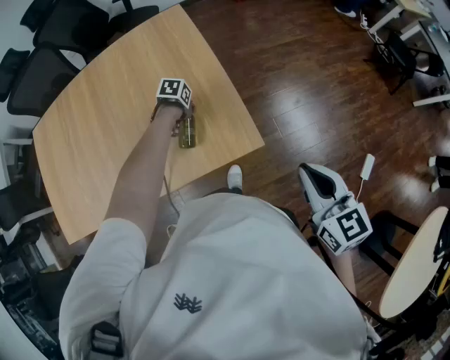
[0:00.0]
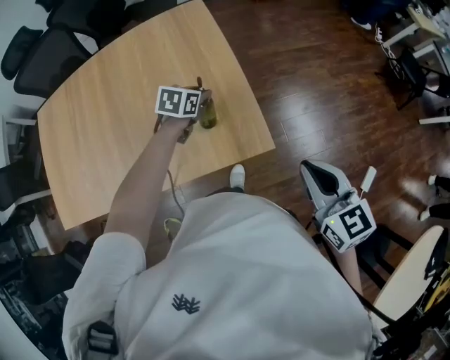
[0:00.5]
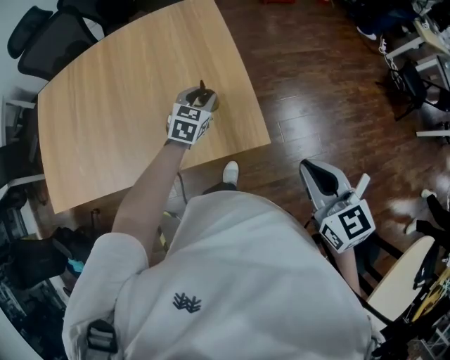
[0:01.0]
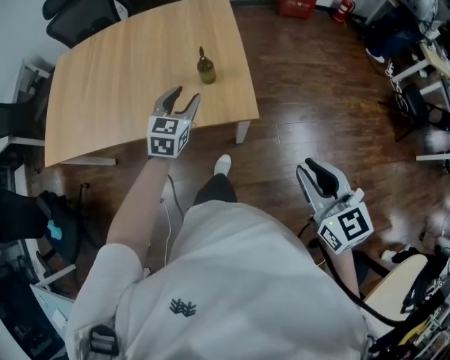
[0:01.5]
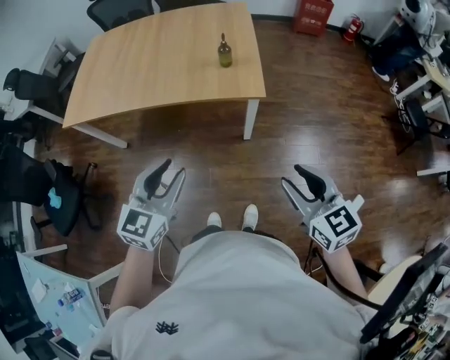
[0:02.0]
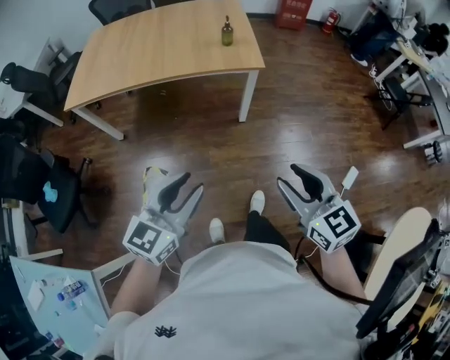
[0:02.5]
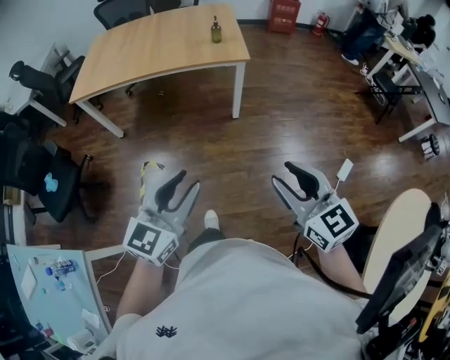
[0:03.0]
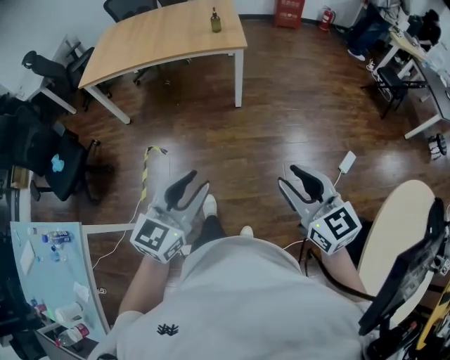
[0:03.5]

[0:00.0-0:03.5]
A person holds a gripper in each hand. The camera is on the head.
0:00.0 to 0:02.0: The right gripper moves about 20 cm, swivels some 30 degrees, and opens up; the left gripper changes place by approximately 60 cm, and angles its fingers upward, by some 60 degrees.
0:02.0 to 0:03.5: The two grippers go approximately 35 cm backward.

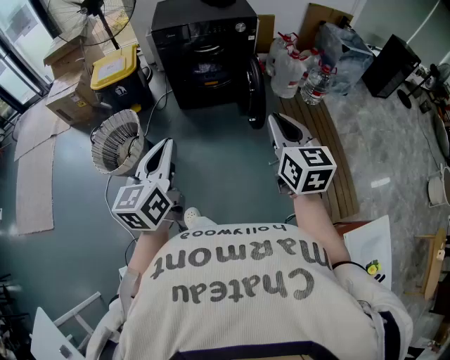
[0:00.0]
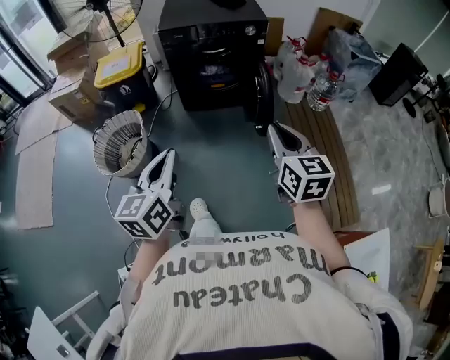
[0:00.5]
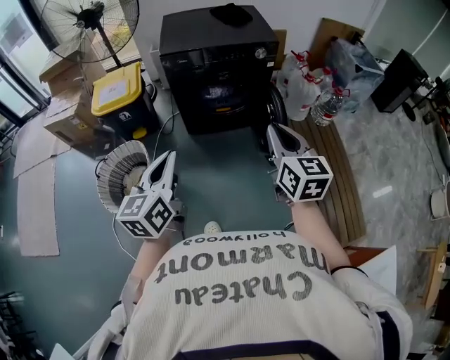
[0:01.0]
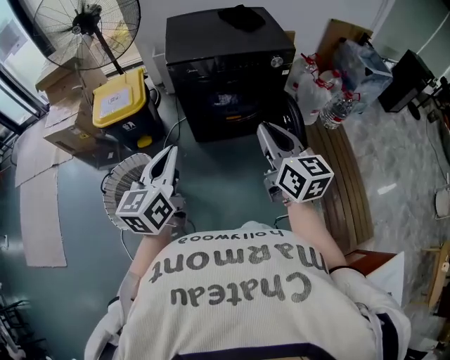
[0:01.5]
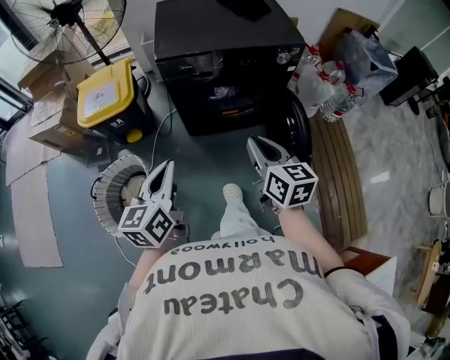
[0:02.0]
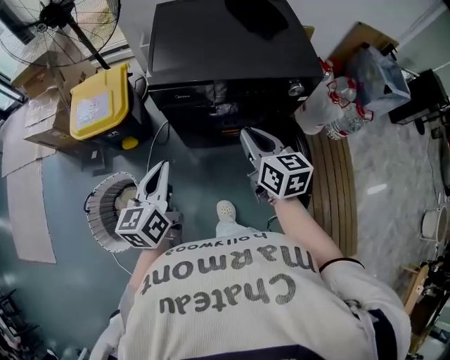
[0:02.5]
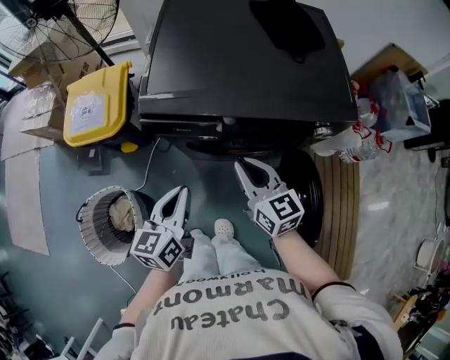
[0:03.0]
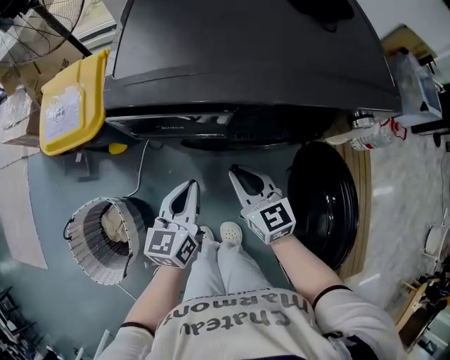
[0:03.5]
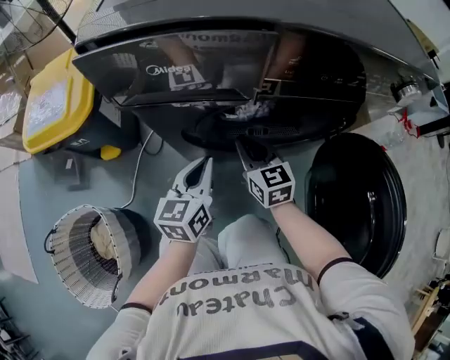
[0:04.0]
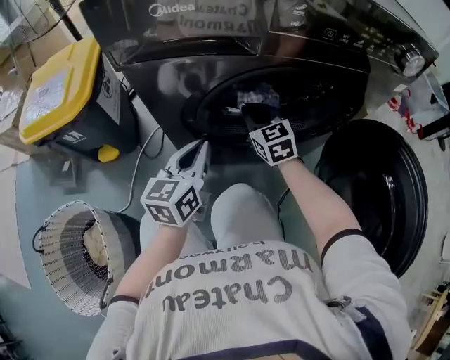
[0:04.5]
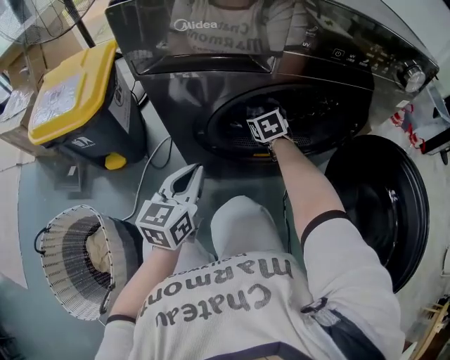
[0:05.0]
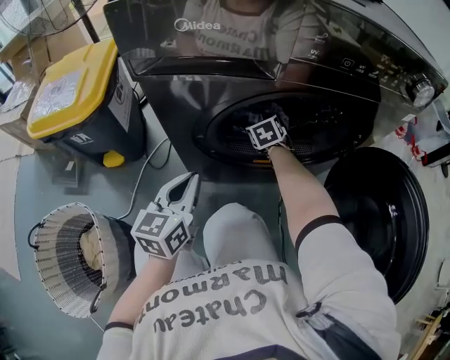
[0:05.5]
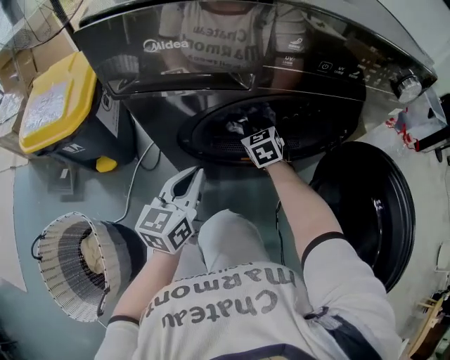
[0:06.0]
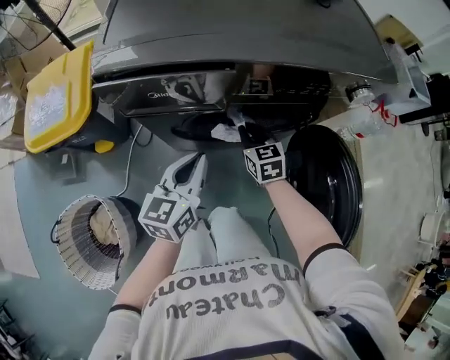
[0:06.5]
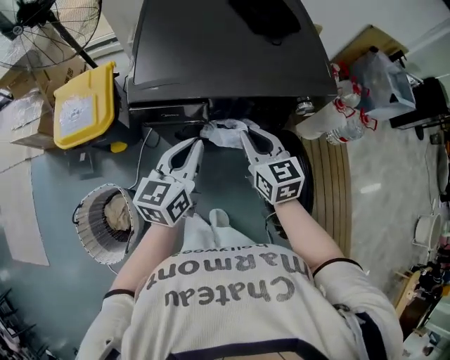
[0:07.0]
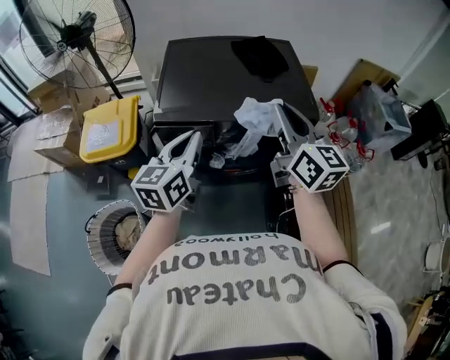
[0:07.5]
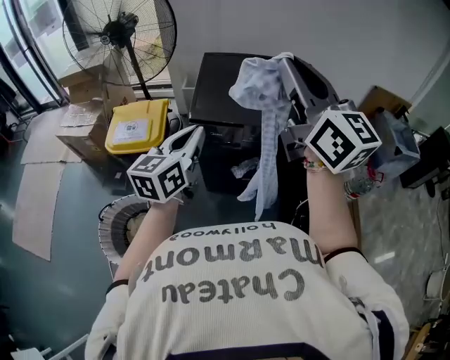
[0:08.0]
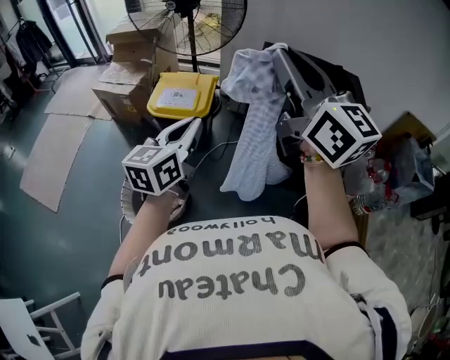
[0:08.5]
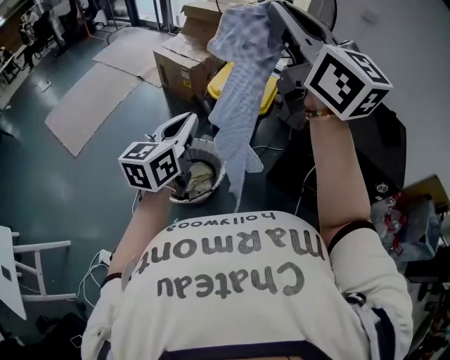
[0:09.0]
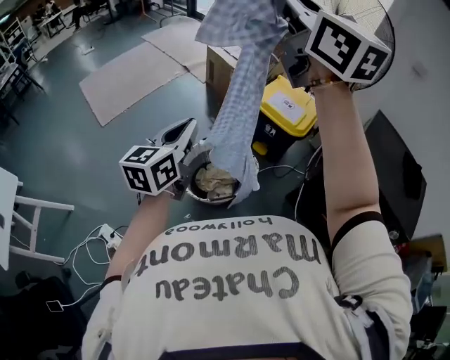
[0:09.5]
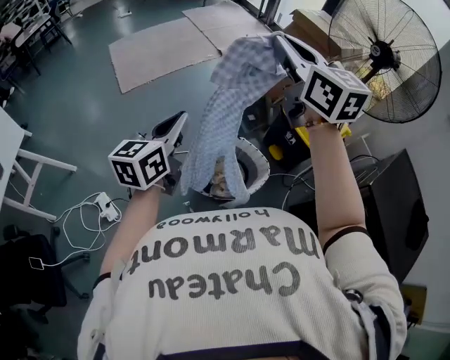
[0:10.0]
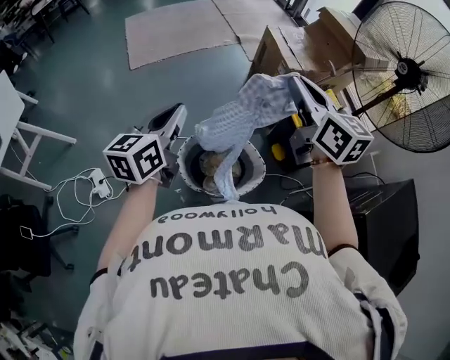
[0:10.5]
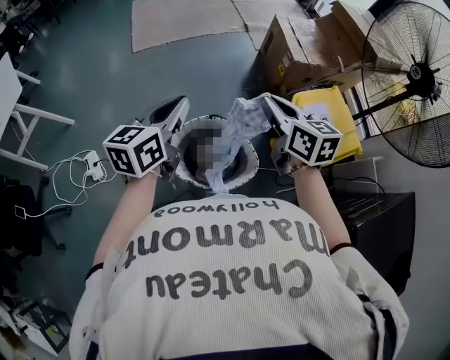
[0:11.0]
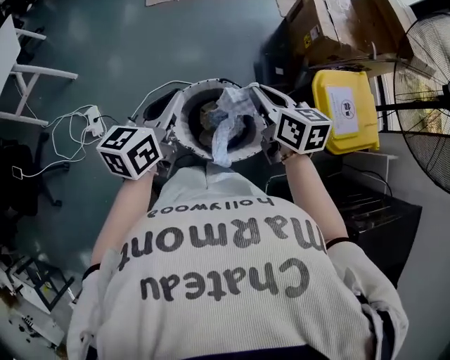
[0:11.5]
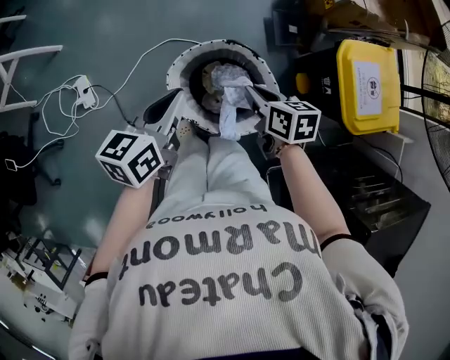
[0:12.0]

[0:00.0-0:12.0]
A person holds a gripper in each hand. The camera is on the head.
0:00.0 to 0:02.0: The pair of grippers is taken forward and to the left, roughly 40 cm.
0:02.0 to 0:04.0: Both grippers travel together downward and forward, about 50 cm. The right gripper turns by roughly 20 degrees.
0:04.0 to 0:06.0: The right gripper shifts roughly 15 cm forward and downward, rotates approximately 30 degrees, and opens and closes again.
0:06.0 to 0:08.0: The right gripper travels upward by some 90 cm, and tips its fingers upward by about 50 degrees. The left gripper travels upward by roughly 50 cm.
0:08.0 to 0:10.0: Both grippers are carried some 70 cm. The left gripper changes its angle by some 60 degrees, while the right gripper swivels approximately 60 degrees.
0:10.0 to 0:12.0: The left gripper goes approximately 25 cm downward, and changes its angle by roughly 30 degrees; the right gripper travels downward by approximately 50 cm, and tips its fingers downward by about 40 degrees.

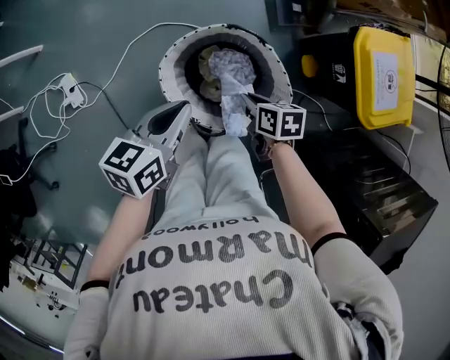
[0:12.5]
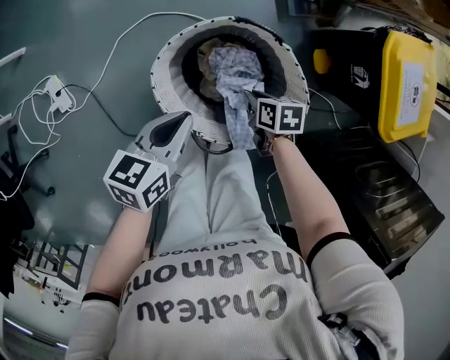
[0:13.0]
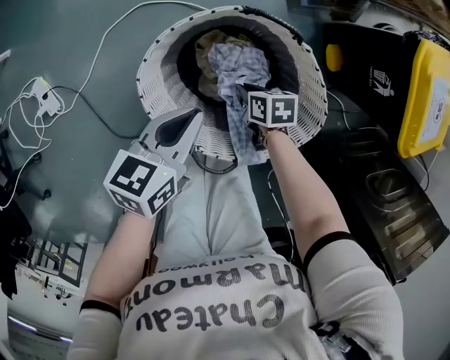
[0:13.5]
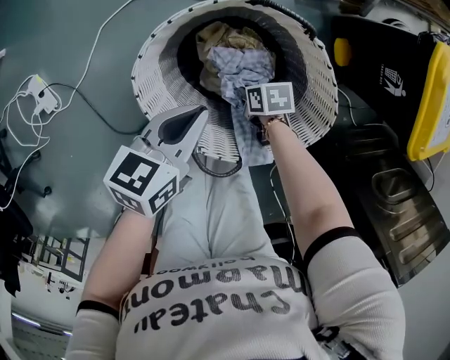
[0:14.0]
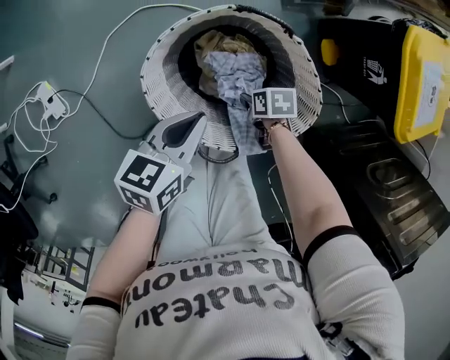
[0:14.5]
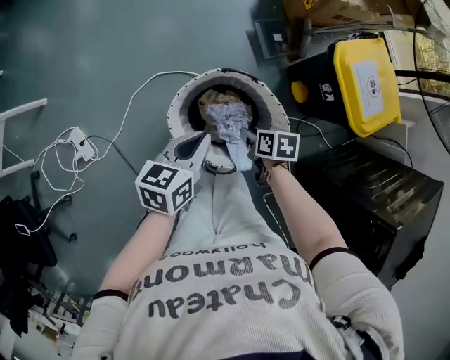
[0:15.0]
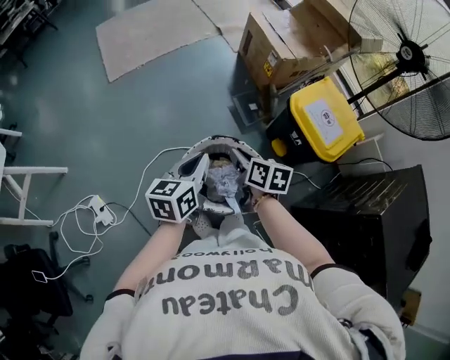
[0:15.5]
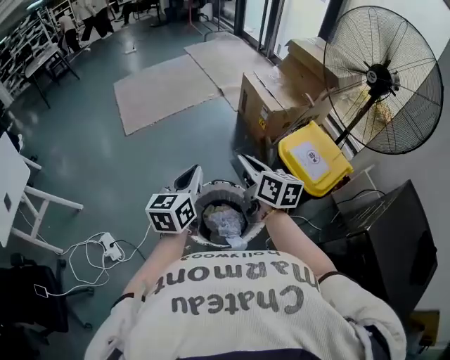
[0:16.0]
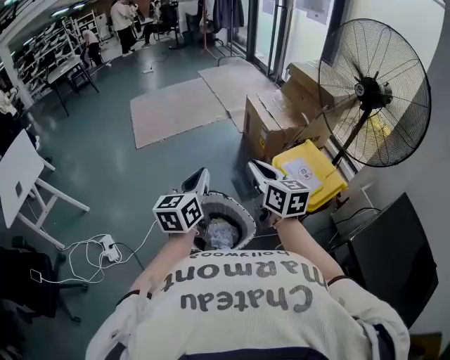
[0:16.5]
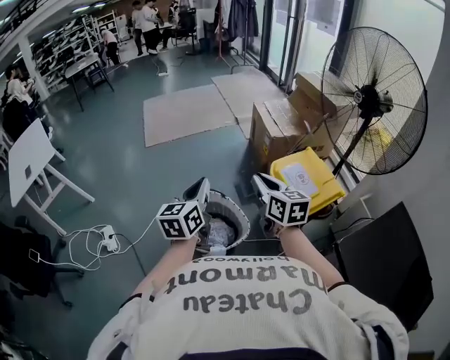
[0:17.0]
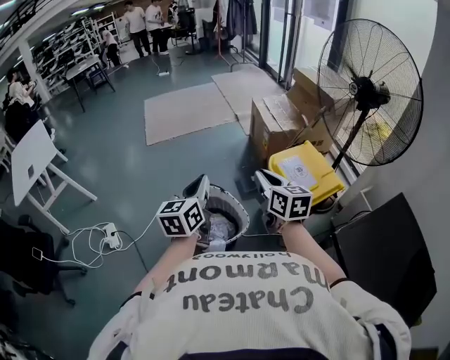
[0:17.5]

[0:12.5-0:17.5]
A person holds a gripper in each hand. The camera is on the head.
0:12.5 to 0:15.0: The right gripper goes downward and returns, about 30 cm each way; the left gripper goes downward and returns, about 20 cm each way.
0:15.0 to 0:17.5: Both grippers travel together upward and to the right, about 40 cm. The left gripper changes its angle by approximately 40 degrees; the right gripper tips its fingers upward by about 50 degrees.

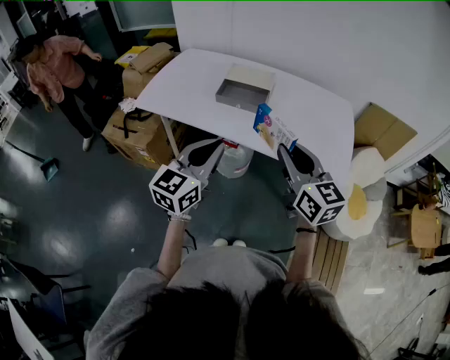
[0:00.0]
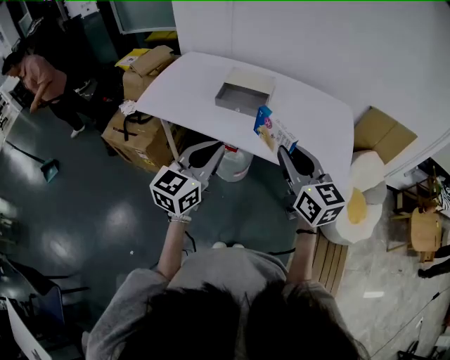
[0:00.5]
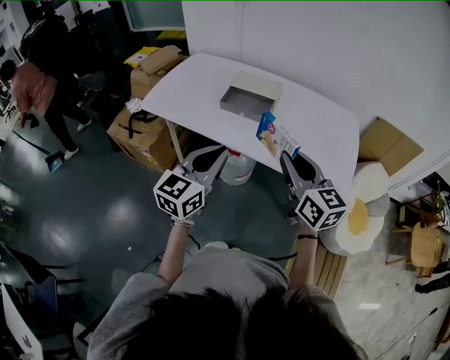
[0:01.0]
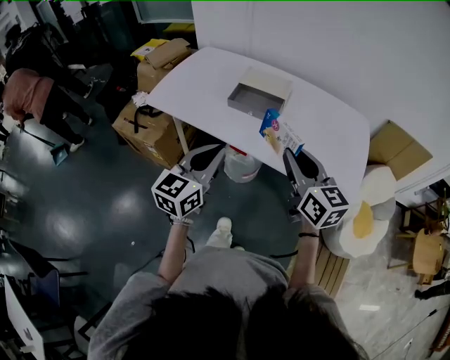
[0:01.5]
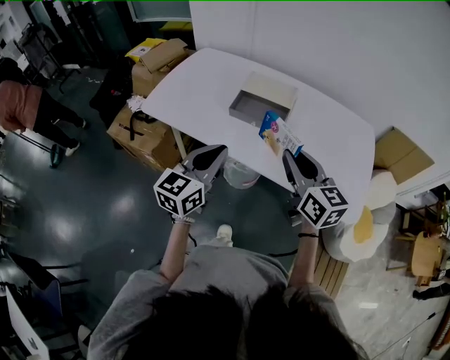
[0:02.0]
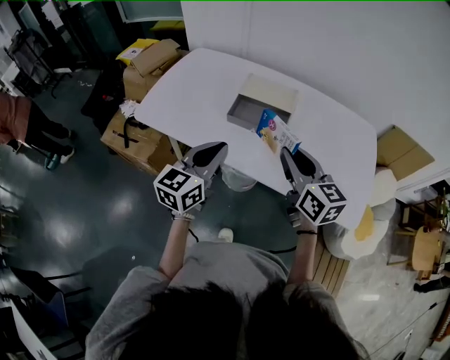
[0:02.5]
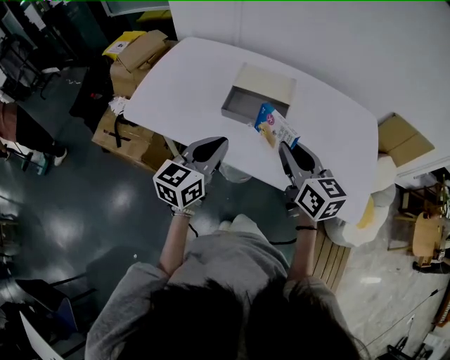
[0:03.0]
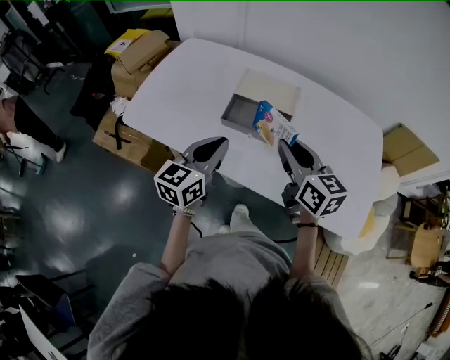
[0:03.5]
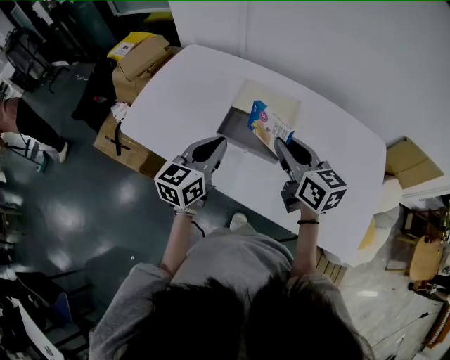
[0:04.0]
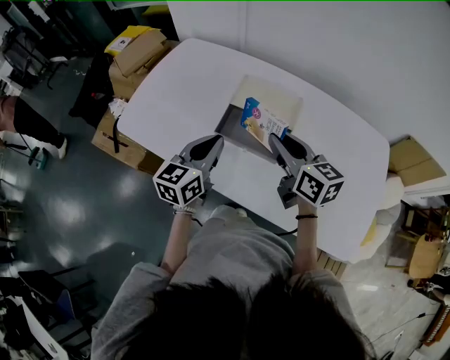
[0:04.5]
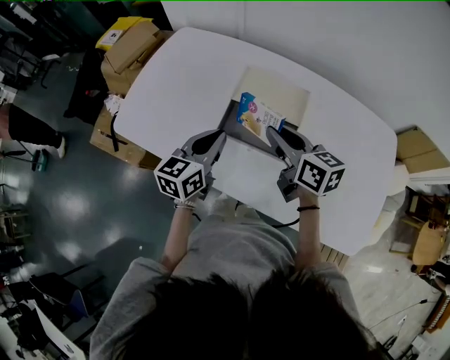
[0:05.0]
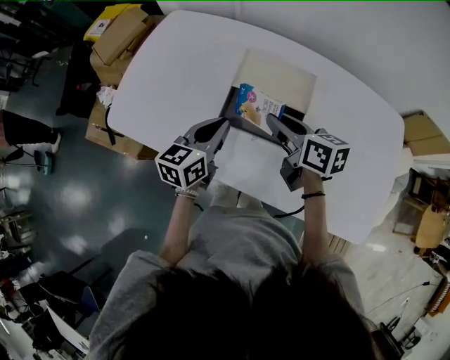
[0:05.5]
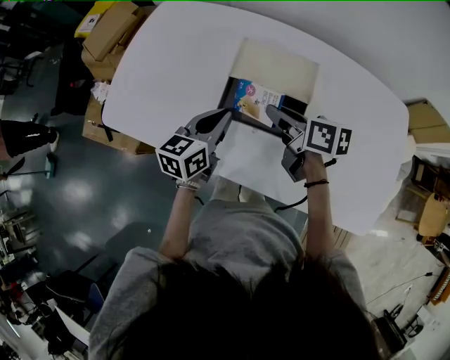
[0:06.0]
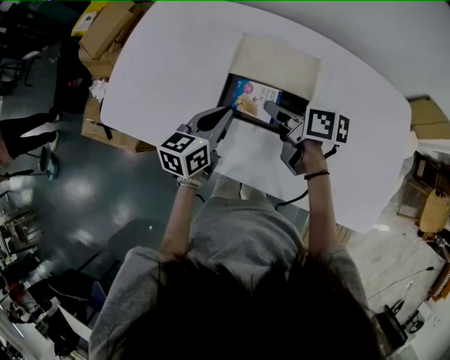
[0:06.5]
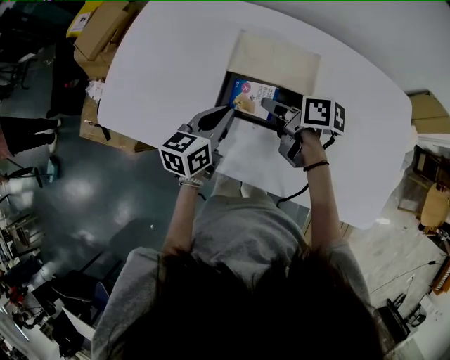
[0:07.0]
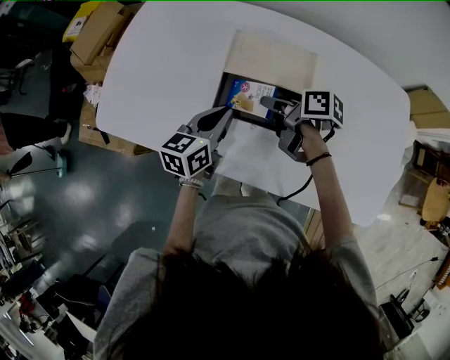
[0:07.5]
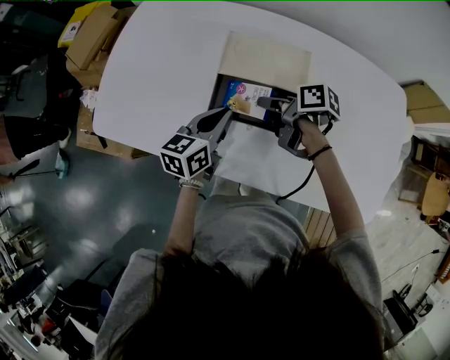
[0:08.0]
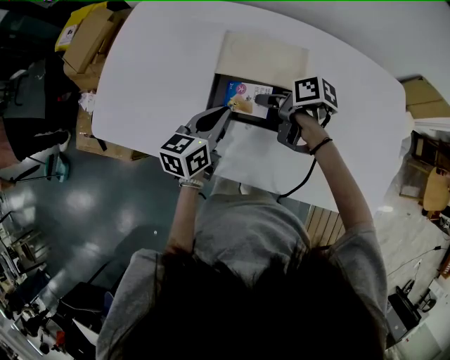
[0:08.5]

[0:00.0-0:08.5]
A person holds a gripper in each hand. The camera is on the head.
0:00.0 to 0:02.0: The grippers both shift forward by roughly 10 cm.
0:02.0 to 0:04.0: Both grippers travel together forward, approximately 20 cm.
0:04.0 to 0:06.5: The two grippers go approximately 15 cm downward and forward. The right gripper swivels roughly 50 degrees.
0:06.5 to 0:08.5: The right gripper goes some 5 cm downward, and changes its angle by approximately 20 degrees.
